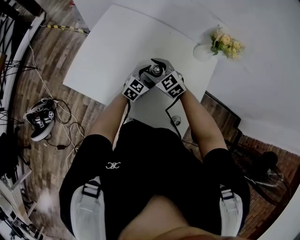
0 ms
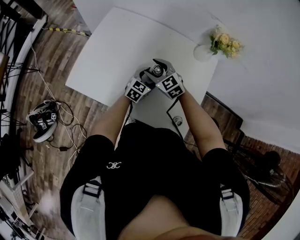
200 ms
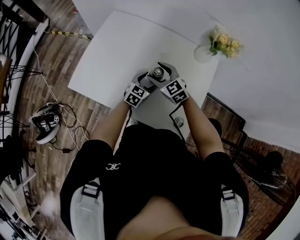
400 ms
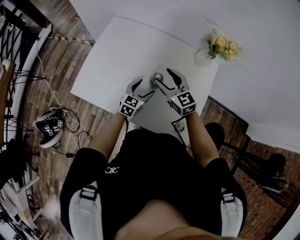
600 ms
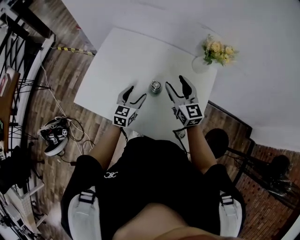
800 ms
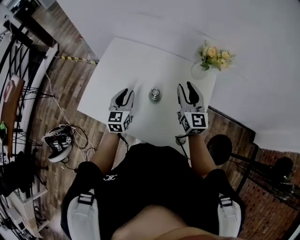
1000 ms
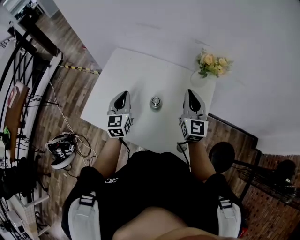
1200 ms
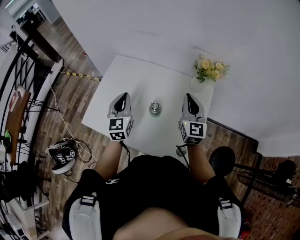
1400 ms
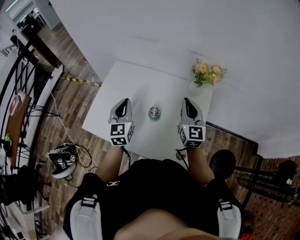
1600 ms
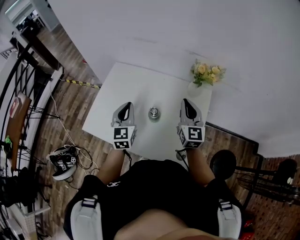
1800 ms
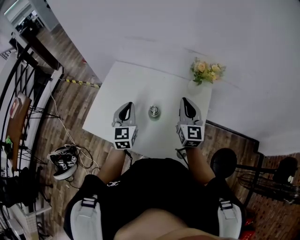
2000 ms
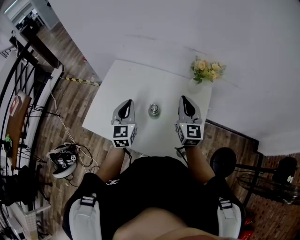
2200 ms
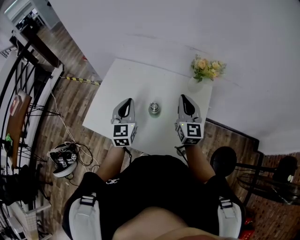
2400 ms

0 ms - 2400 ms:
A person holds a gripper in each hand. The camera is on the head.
0 ms - 1200 ms: The right gripper moves to the right and upward, about 25 cm, angles its fingers upward, by some 30 degrees, and closes up. The left gripper goes roughly 25 cm upward and to the left, rotates approximately 40 degrees, and closes its fingers.
1200 ms - 2400 ms: The left gripper ends up approximately 5 cm from where it was.

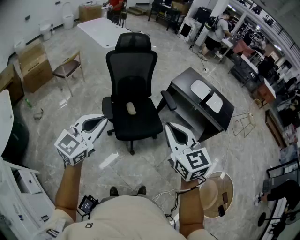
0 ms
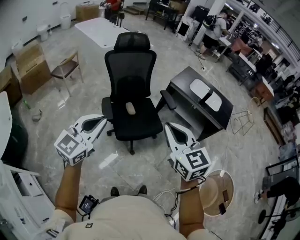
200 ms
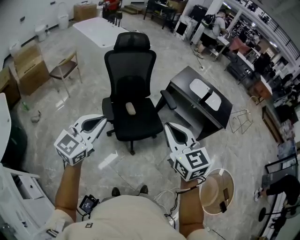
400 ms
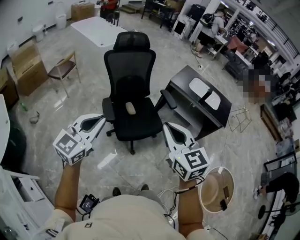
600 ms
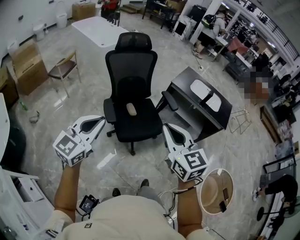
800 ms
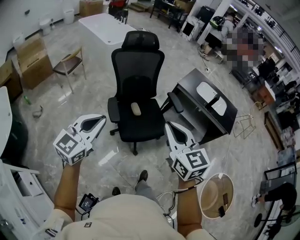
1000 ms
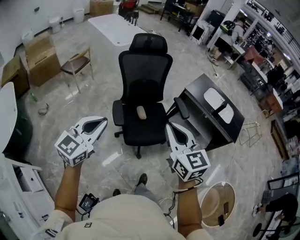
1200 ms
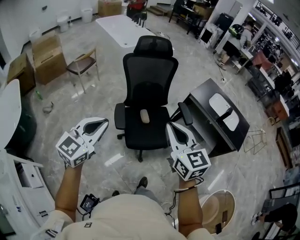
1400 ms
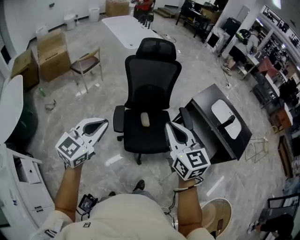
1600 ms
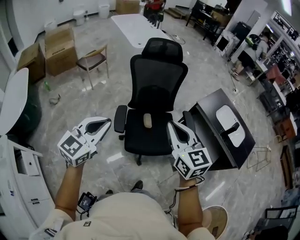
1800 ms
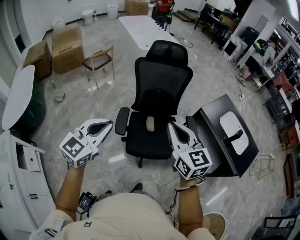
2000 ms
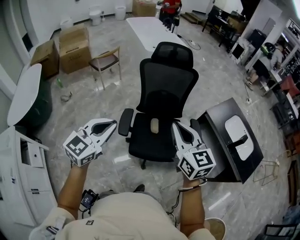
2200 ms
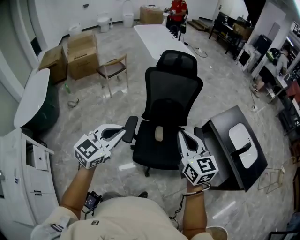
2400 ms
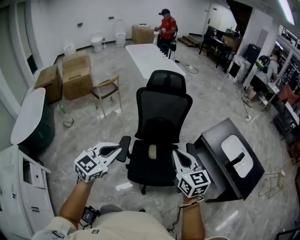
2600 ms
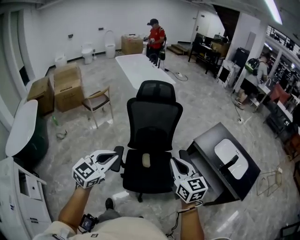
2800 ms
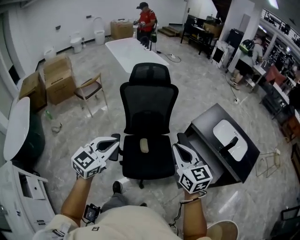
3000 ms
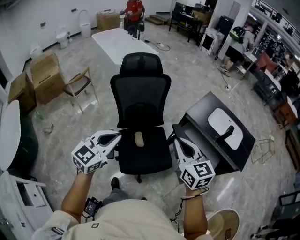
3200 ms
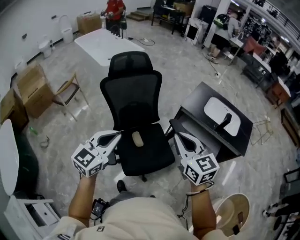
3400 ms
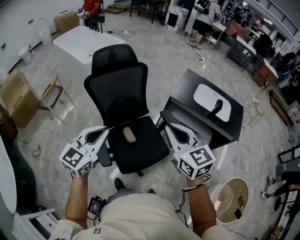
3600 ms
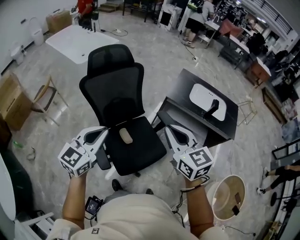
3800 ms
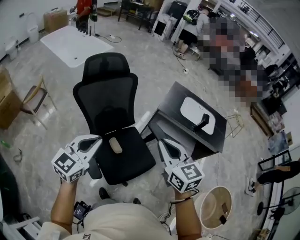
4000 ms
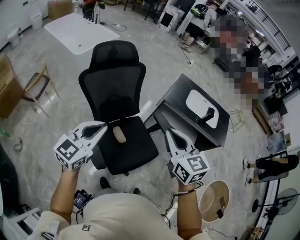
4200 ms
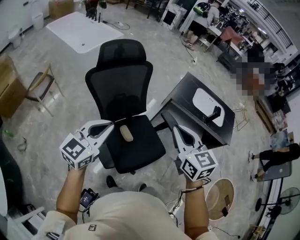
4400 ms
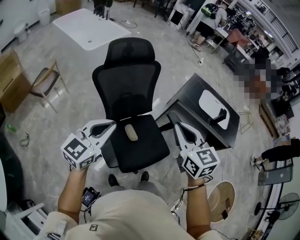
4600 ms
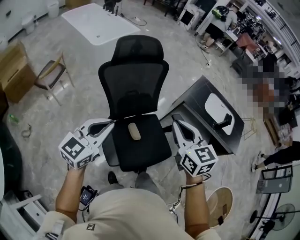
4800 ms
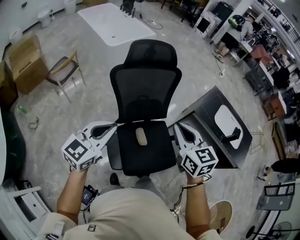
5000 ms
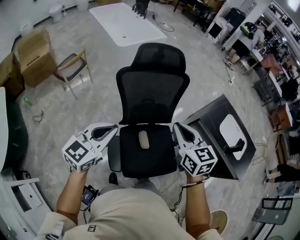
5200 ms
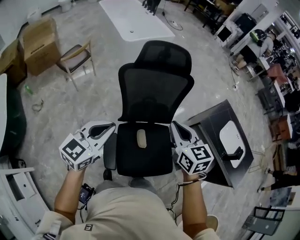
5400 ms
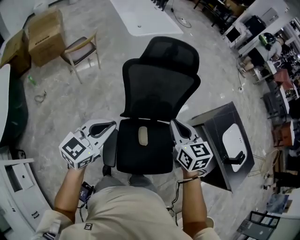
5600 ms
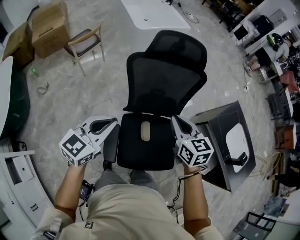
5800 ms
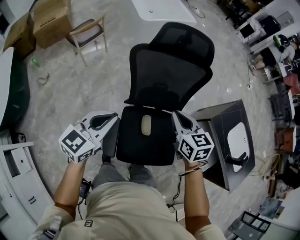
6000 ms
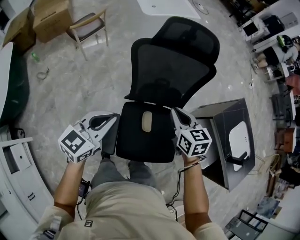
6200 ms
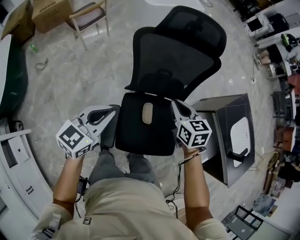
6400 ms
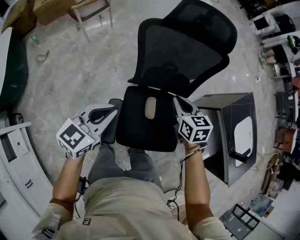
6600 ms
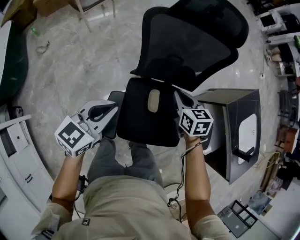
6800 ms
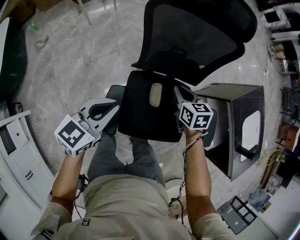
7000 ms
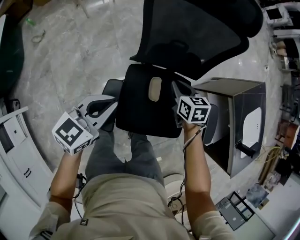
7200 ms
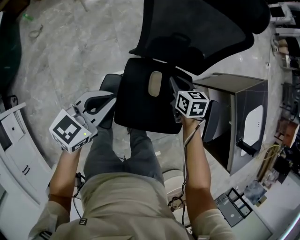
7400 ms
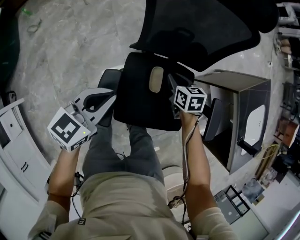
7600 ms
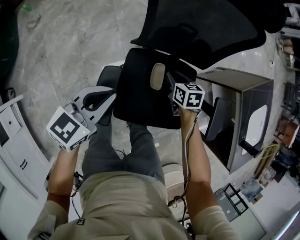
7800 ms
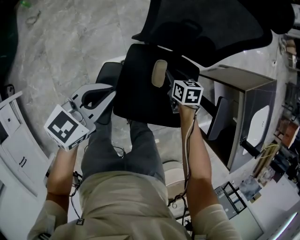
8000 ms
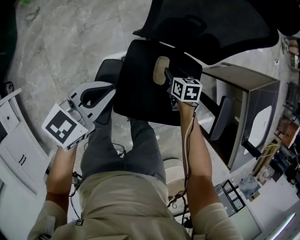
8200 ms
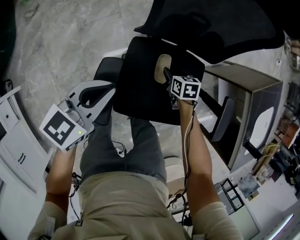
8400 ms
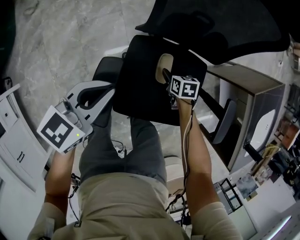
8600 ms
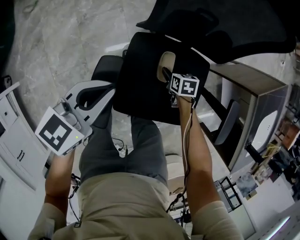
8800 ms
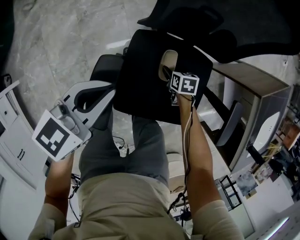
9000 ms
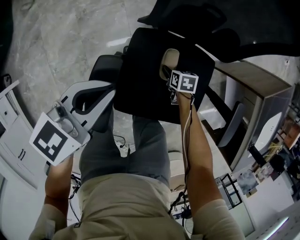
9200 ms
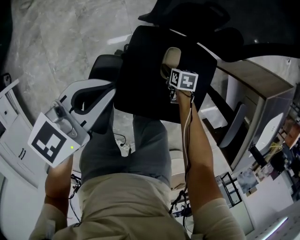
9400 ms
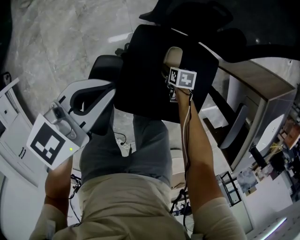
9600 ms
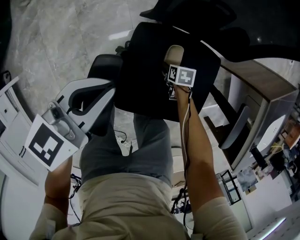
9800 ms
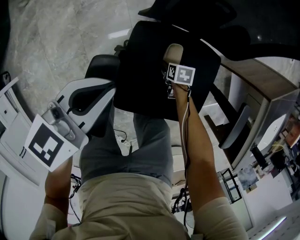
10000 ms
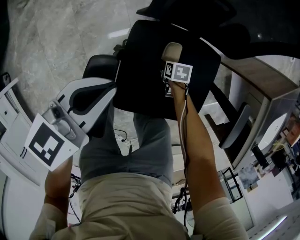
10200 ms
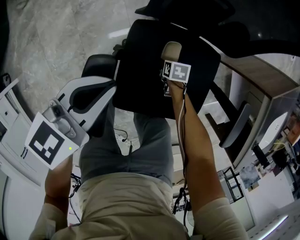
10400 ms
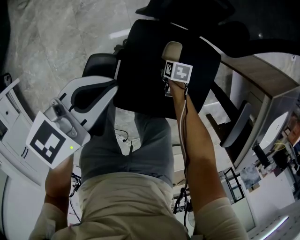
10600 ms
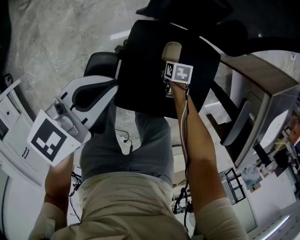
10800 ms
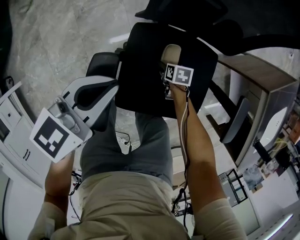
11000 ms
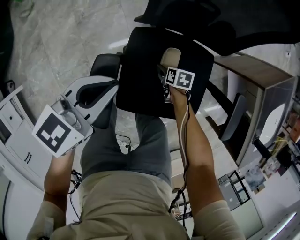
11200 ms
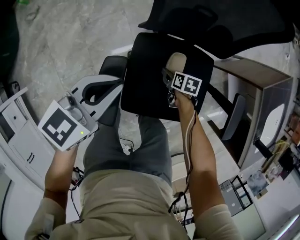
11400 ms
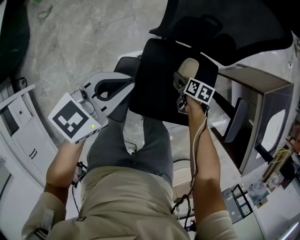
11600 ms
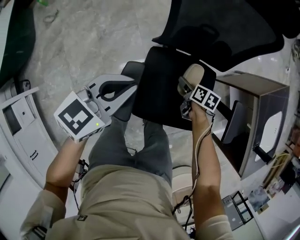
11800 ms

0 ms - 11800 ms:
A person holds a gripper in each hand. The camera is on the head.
0 ms - 1400 ms: Both grippers travel together forward and to the left, some 15 cm.
1400 ms - 3000 ms: Both grippers move to the right and forward, roughly 20 cm.
3000 ms - 4400 ms: The grippers both shift to the left and forward by roughly 20 cm. The right gripper changes its angle by approximately 30 degrees. The left gripper rotates approximately 30 degrees.
4400 ms - 6000 ms: The left gripper ends up roughly 15 cm from where it was, and turns by approximately 30 degrees; the right gripper moves some 30 cm, and swivels roughly 30 degrees.
6000 ms - 7400 ms: The left gripper goes some 20 cm downward. The right gripper is displaced downward by roughly 30 cm, and rotates some 20 degrees.
7400 ms - 8800 ms: The left gripper heads downward, covering some 10 cm; the right gripper shifts about 25 cm downward, and opens its fingers.
8800 ms - 10400 ms: The right gripper moves downward, about 10 cm. Meanwhile the left gripper changes place by roughly 5 cm.
10400 ms - 11800 ms: The right gripper moves upward, about 25 cm, and rotates some 30 degrees; the left gripper travels upward by about 15 cm.

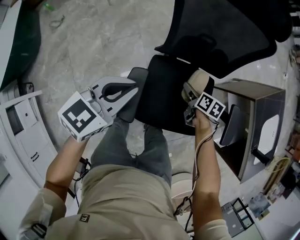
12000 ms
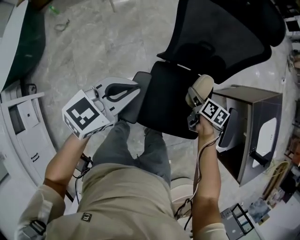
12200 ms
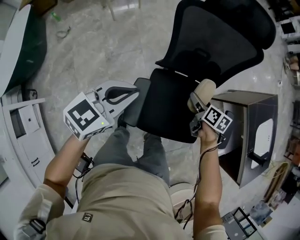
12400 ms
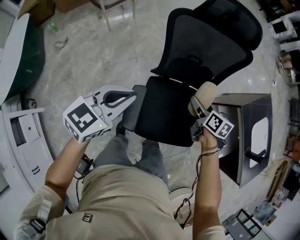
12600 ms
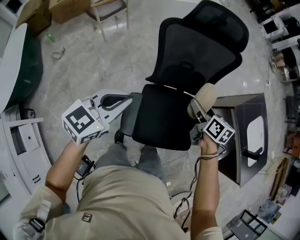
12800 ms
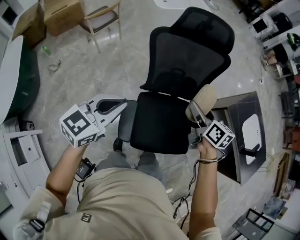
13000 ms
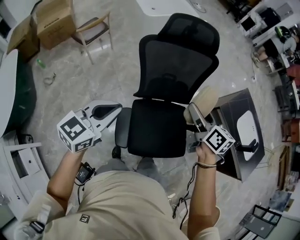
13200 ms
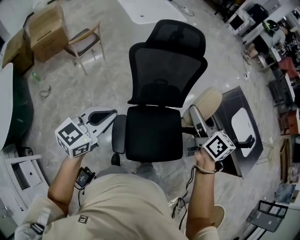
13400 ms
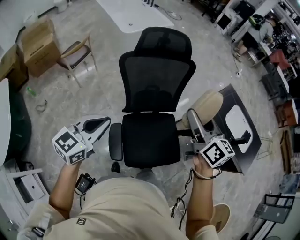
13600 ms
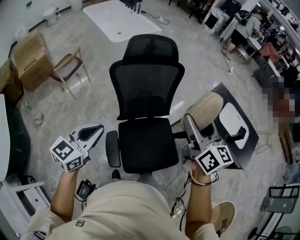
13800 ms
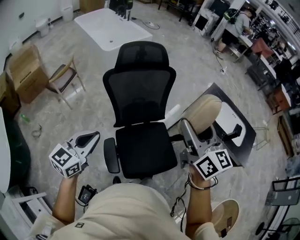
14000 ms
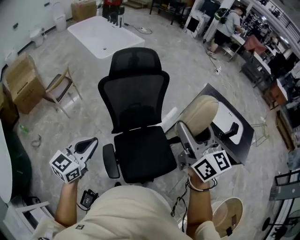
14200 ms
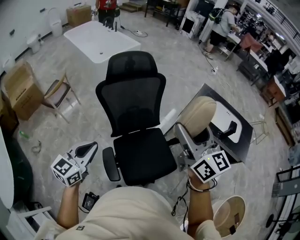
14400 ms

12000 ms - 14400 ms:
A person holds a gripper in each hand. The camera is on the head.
12000 ms - 13200 ms: The right gripper heads upward, covering approximately 40 cm, and tips its fingers upward by some 40 degrees. Meanwhile the left gripper goes approximately 20 cm upward.
13200 ms - 14400 ms: The left gripper goes approximately 5 cm upward. Meanwhile the right gripper is displaced upward, backward and to the right by some 25 cm, and swivels some 40 degrees.

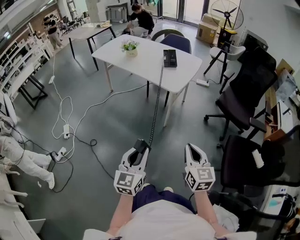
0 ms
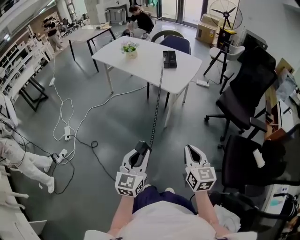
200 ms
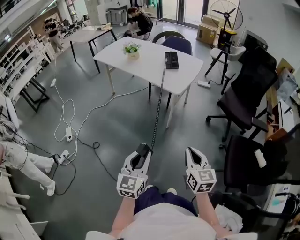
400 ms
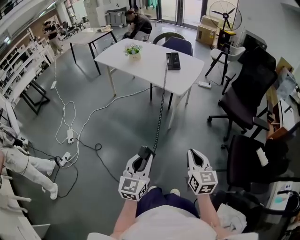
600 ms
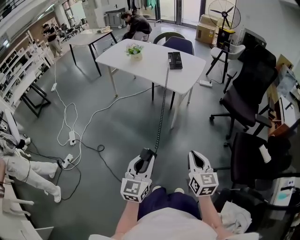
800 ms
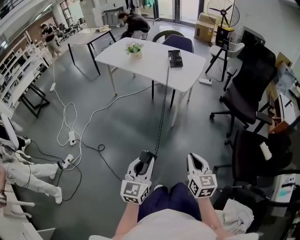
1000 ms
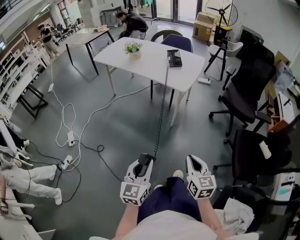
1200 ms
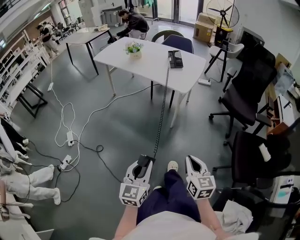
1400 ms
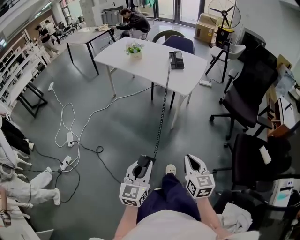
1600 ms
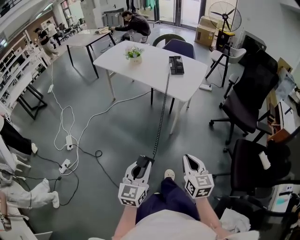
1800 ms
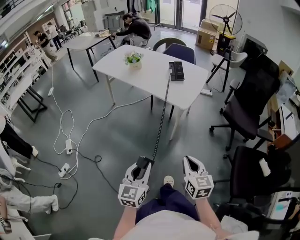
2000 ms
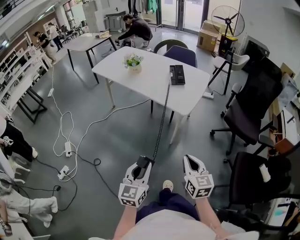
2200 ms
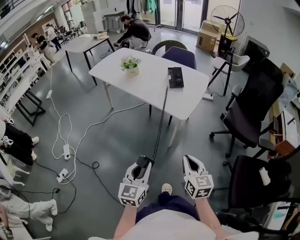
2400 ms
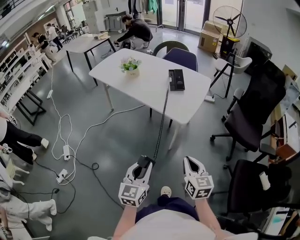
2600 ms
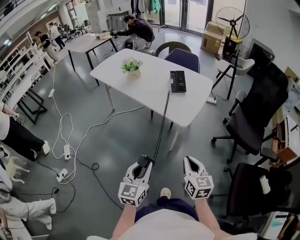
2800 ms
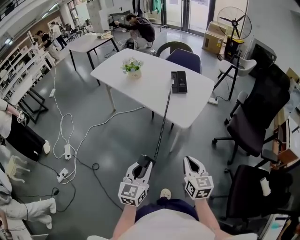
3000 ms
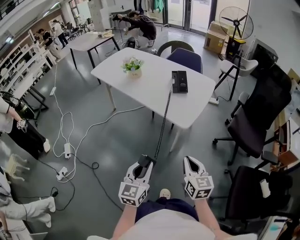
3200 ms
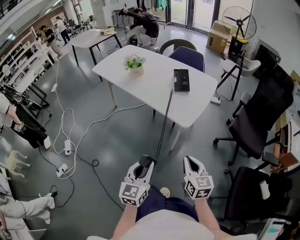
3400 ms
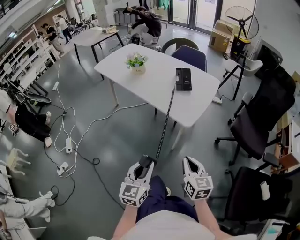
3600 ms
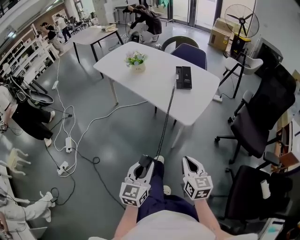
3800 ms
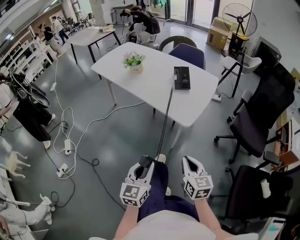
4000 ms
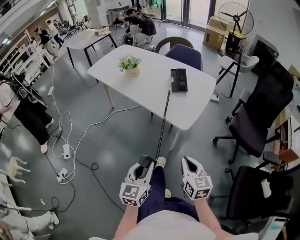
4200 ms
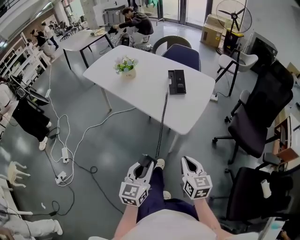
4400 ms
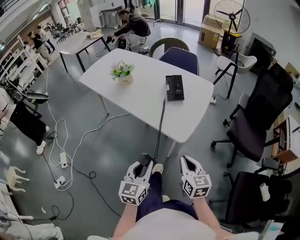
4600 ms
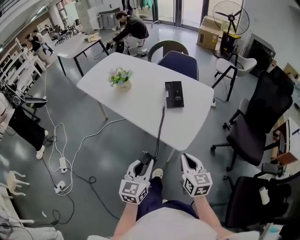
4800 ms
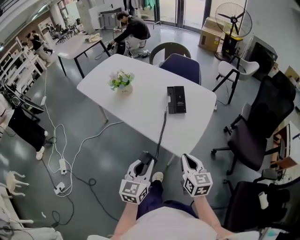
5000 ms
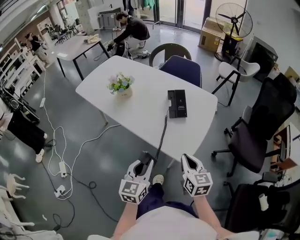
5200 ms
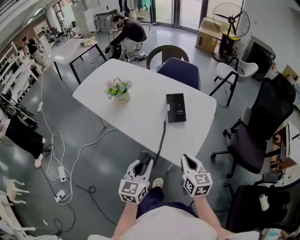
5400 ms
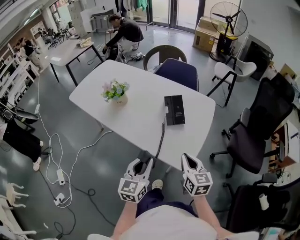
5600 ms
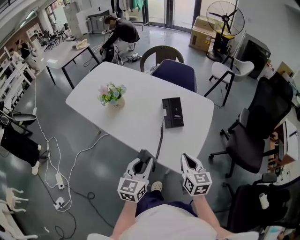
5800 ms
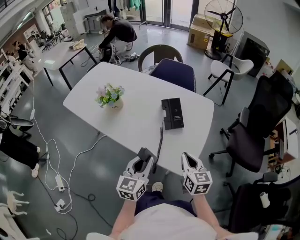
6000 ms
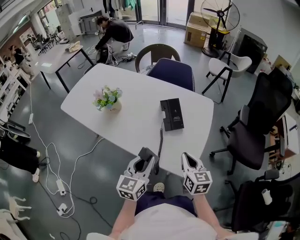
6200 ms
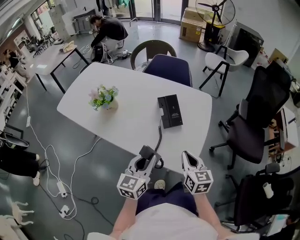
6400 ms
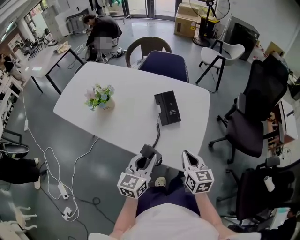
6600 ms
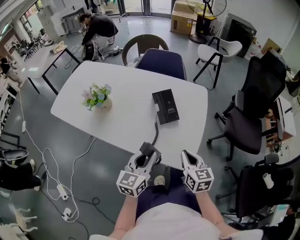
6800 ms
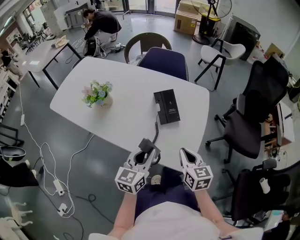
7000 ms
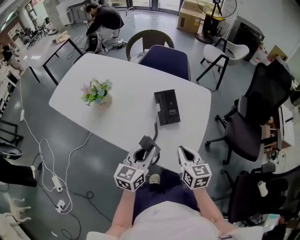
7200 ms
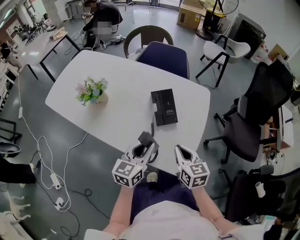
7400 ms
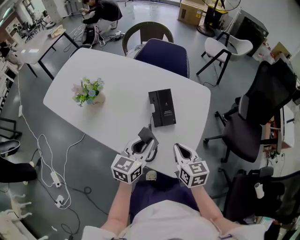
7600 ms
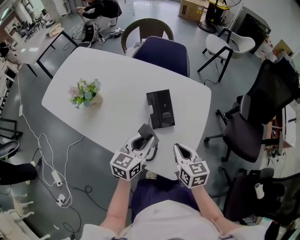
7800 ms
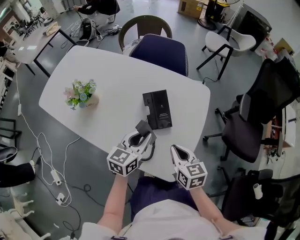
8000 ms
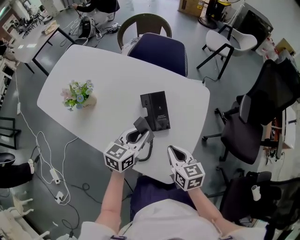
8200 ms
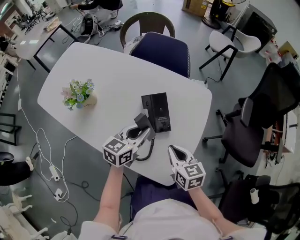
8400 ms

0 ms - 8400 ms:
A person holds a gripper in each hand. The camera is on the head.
0 ms - 1400 ms: Both grippers move to the left, roughly 5 cm.
1400 ms - 2800 ms: The grippers both shift forward by roughly 25 cm.
2800 ms - 4200 ms: The left gripper moves some 5 cm; the right gripper shifts by roughly 5 cm.
4200 ms - 5600 ms: The grippers both shift forward by roughly 25 cm.
5600 ms - 7000 ms: The left gripper goes approximately 10 cm forward; the right gripper shifts by roughly 5 cm.
7000 ms - 8400 ms: The right gripper shifts roughly 10 cm forward. The left gripper shifts some 15 cm forward.
